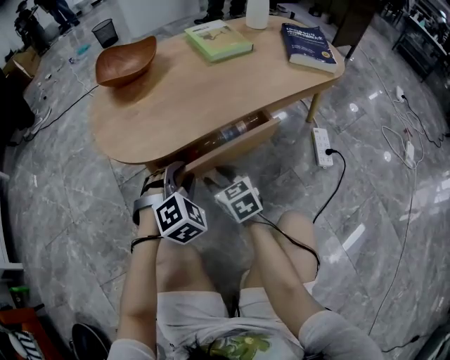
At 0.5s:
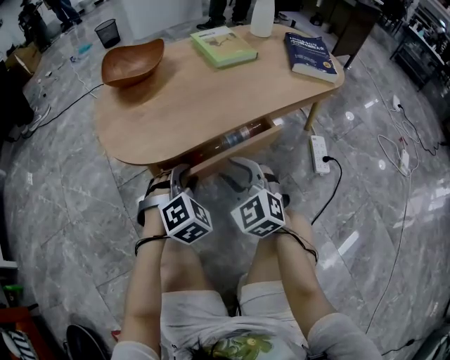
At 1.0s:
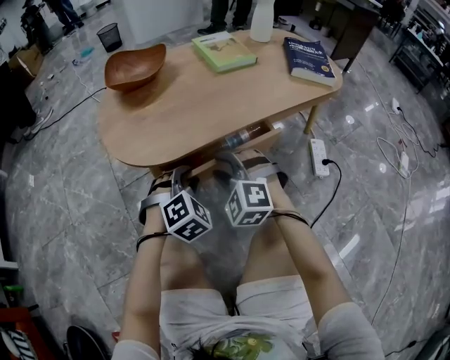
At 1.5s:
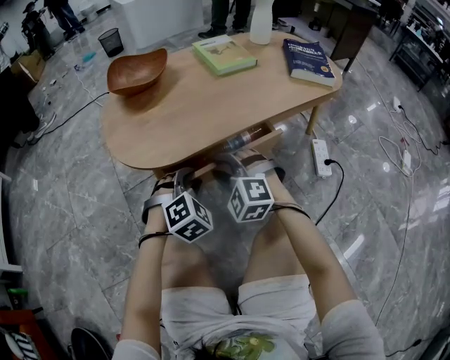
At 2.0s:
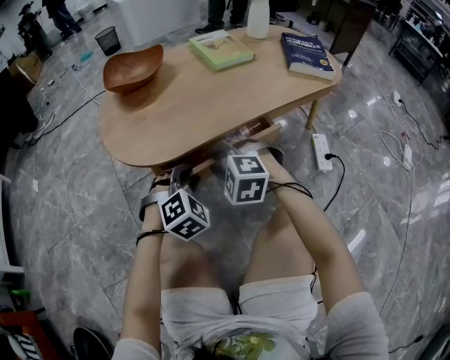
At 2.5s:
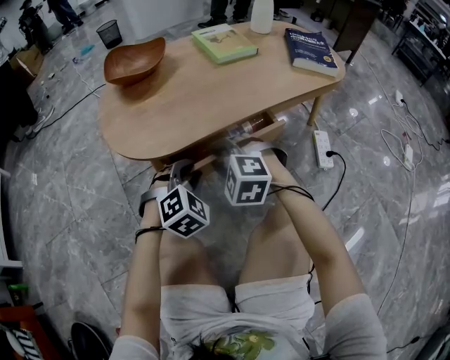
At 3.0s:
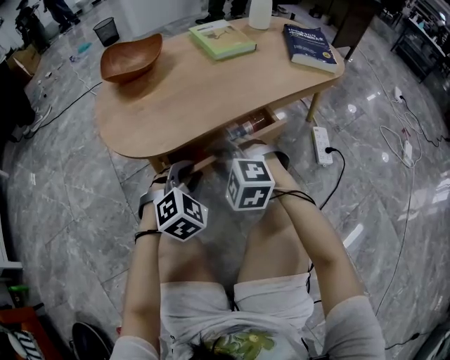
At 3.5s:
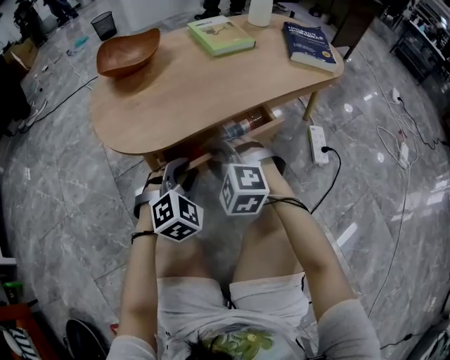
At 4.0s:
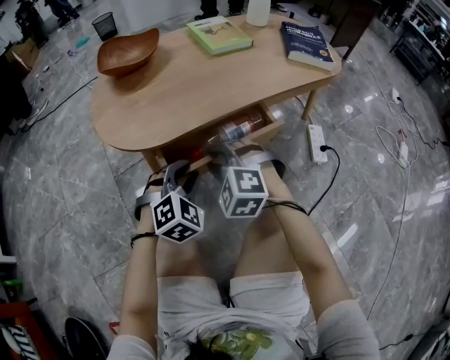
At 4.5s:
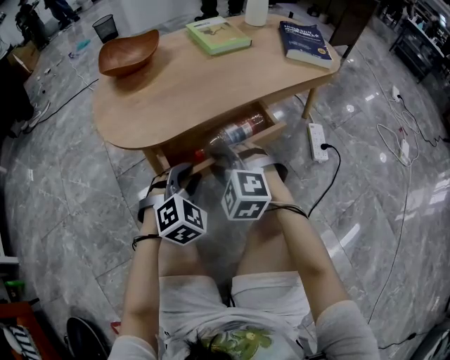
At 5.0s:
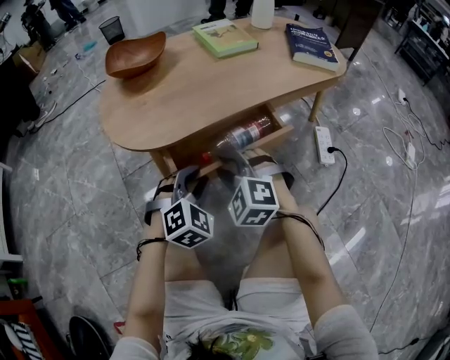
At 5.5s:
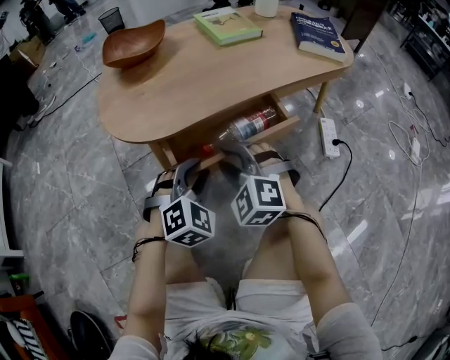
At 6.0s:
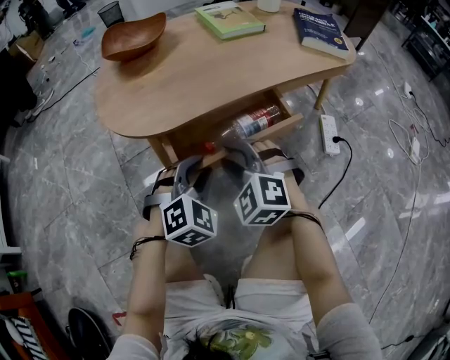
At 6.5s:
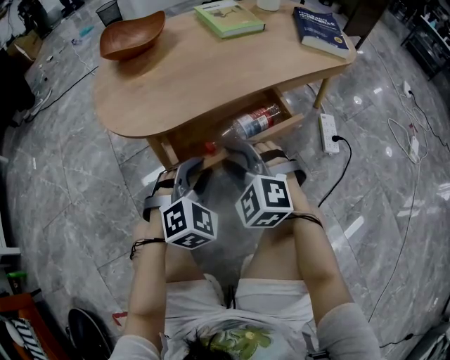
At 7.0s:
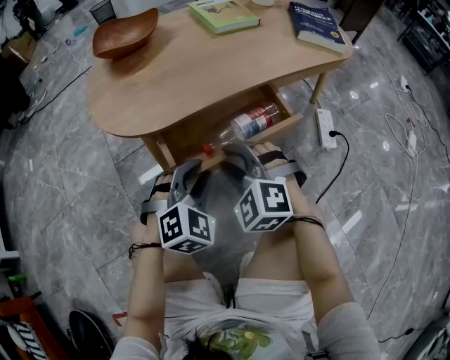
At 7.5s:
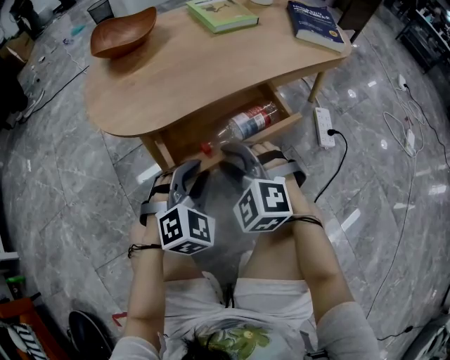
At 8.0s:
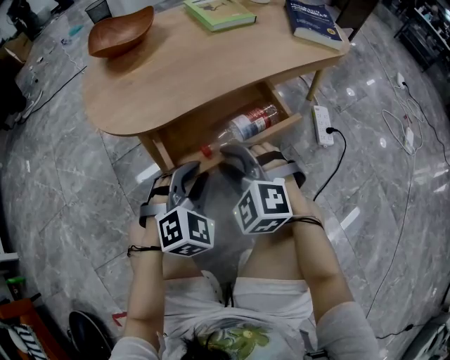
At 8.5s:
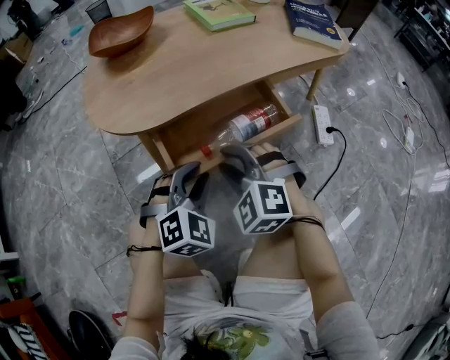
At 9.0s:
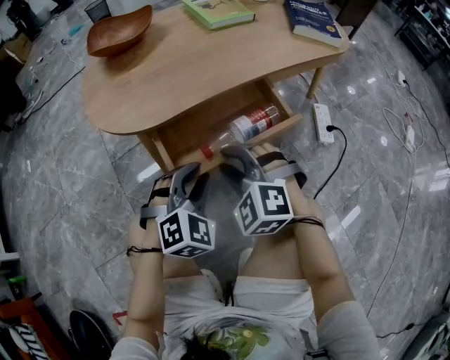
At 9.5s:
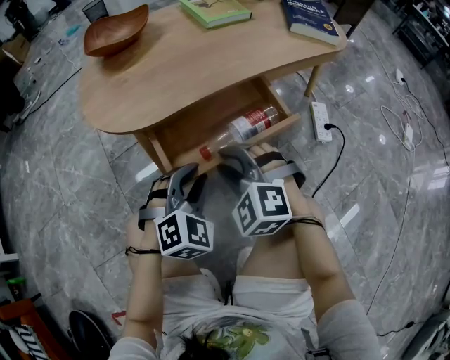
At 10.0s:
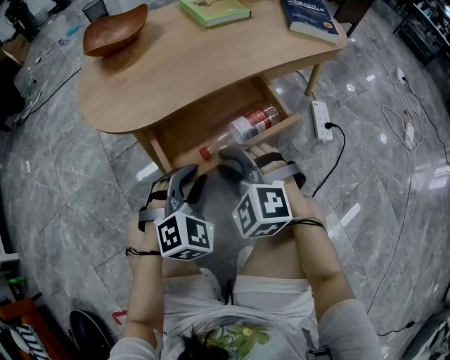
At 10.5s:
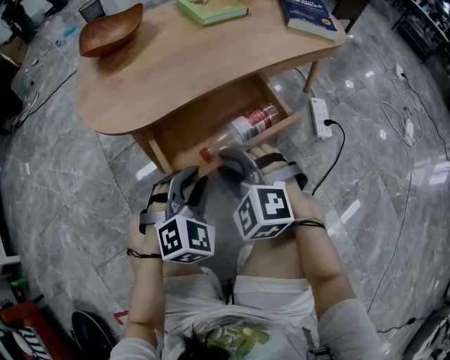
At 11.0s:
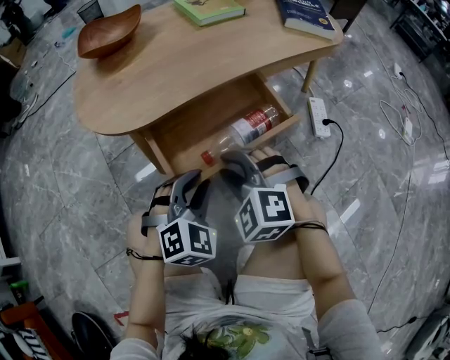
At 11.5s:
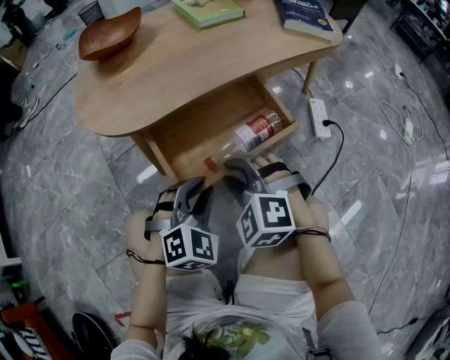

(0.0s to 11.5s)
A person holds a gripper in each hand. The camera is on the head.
0.0s - 2.0s: The right gripper shifts about 10 cm upward, and twists about 60 degrees counterclockwise, seen from behind.
2.0s - 6.0s: There are only small adjustments of the grippers.
6.0s - 7.5s: Both grippers stay put.
7.5s - 11.5s: There are only small adjustments of the grippers.

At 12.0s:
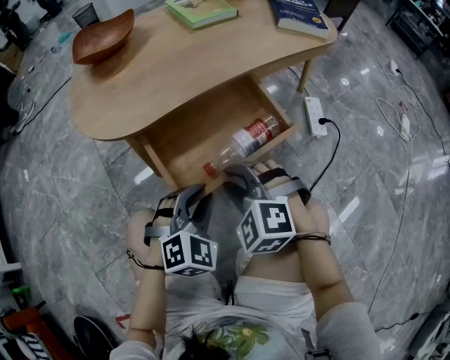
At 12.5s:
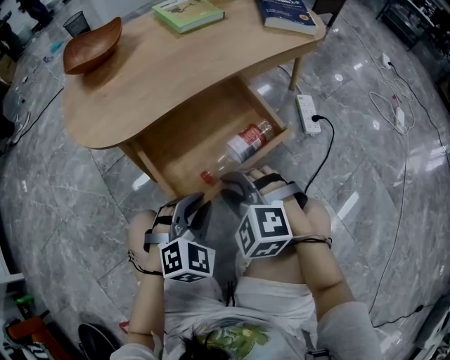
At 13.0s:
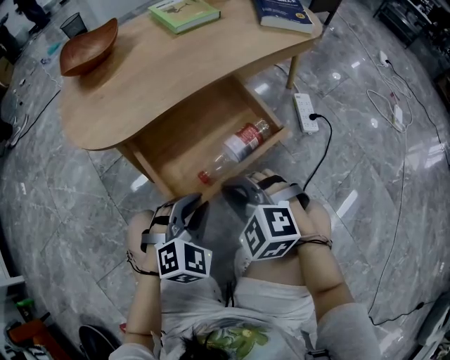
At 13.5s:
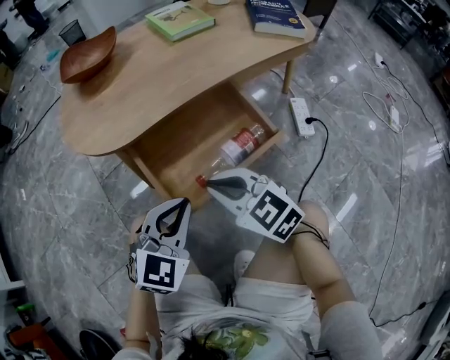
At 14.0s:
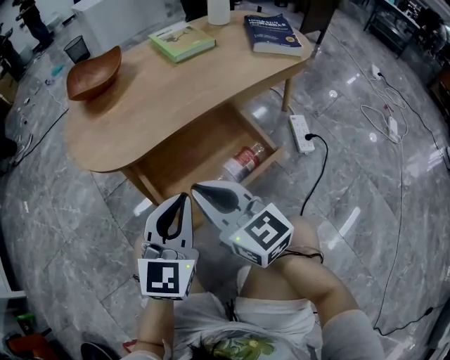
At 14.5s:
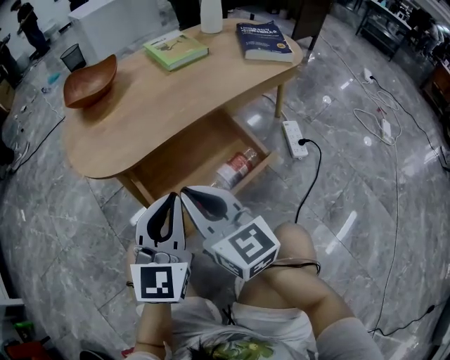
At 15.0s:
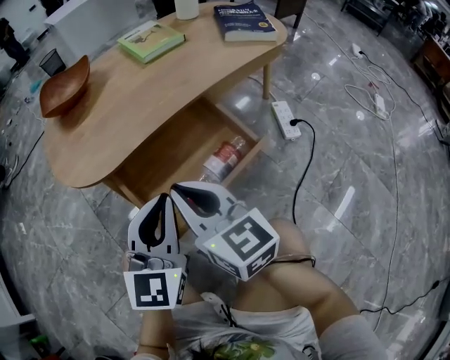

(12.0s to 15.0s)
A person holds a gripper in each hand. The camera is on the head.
12.0s - 13.5s: The left gripper moves upward, about 5 cm, changes its angle by approximately 20 degrees, and closes; the right gripper changes its angle by roughly 40 degrees, and closes.
13.5s - 15.0s: Both grippers move upward, approximately 10 cm. The left gripper rotates roughly 20 degrees. Meanwhile the right gripper swivels roughly 40 degrees.

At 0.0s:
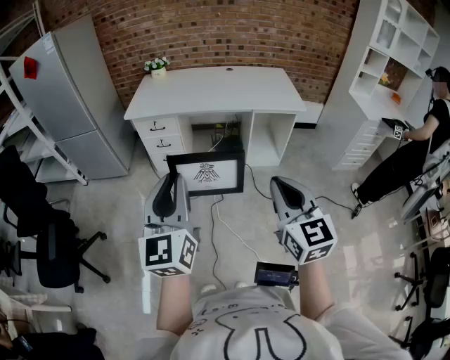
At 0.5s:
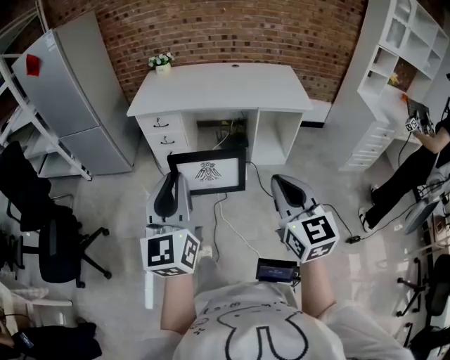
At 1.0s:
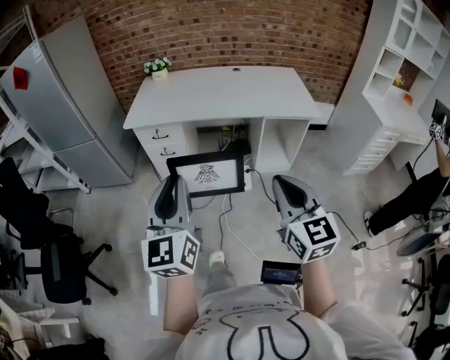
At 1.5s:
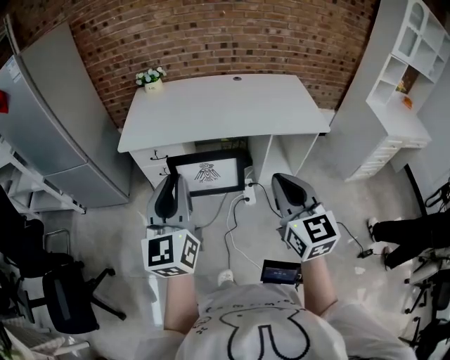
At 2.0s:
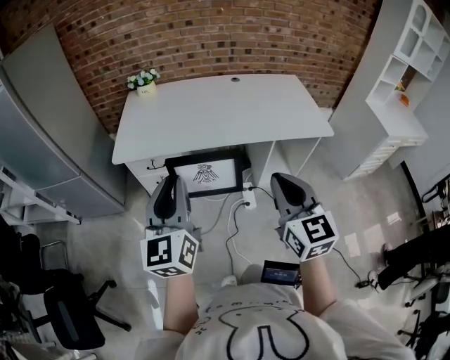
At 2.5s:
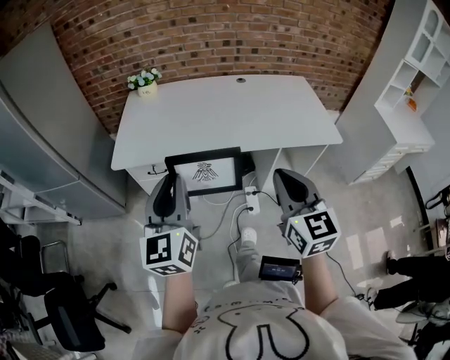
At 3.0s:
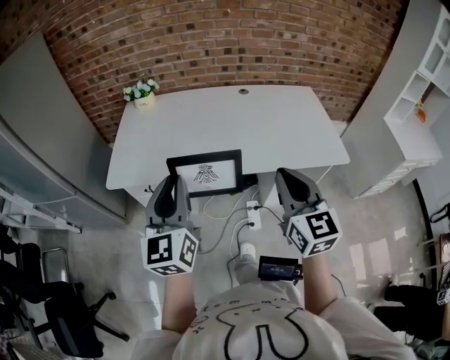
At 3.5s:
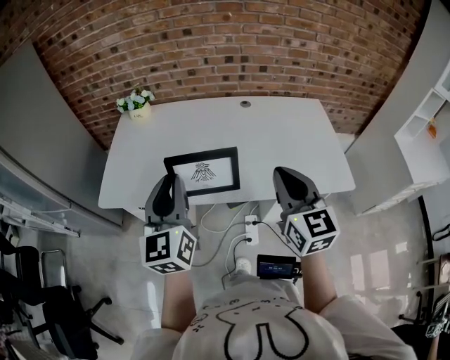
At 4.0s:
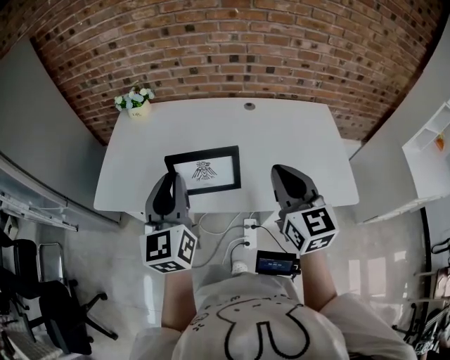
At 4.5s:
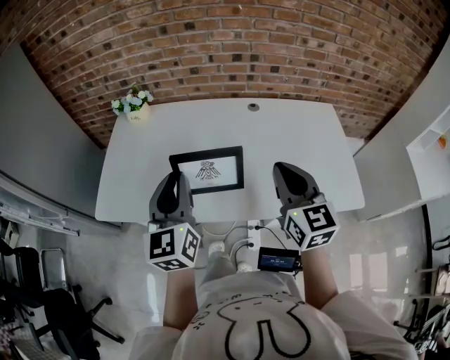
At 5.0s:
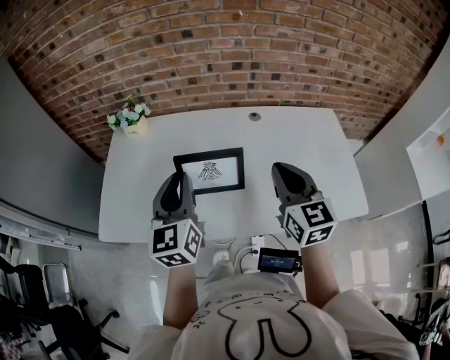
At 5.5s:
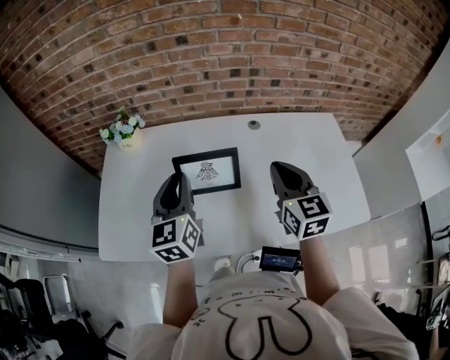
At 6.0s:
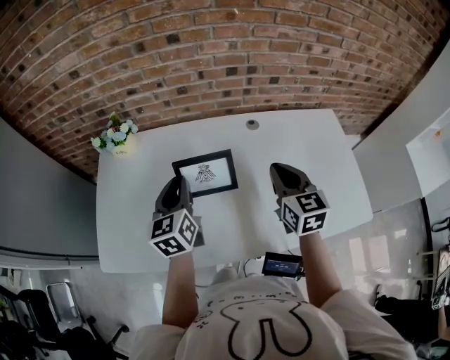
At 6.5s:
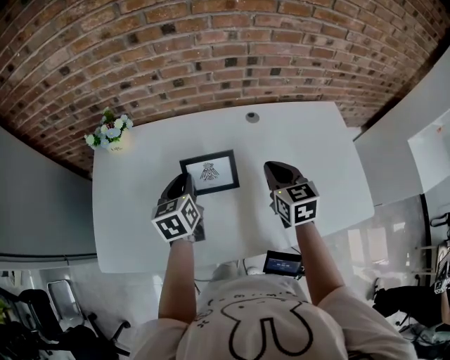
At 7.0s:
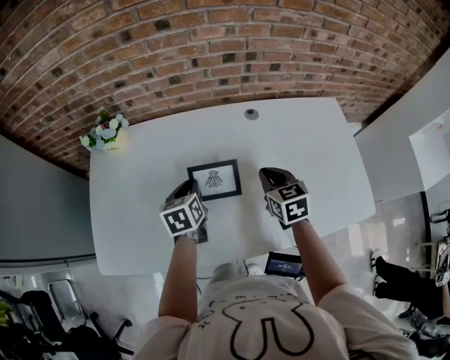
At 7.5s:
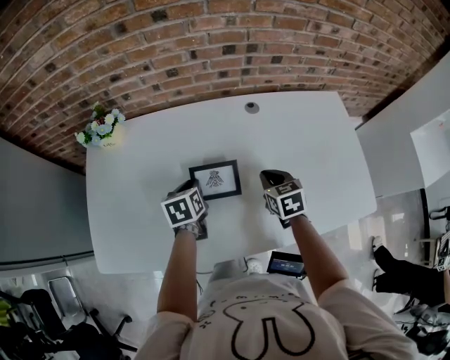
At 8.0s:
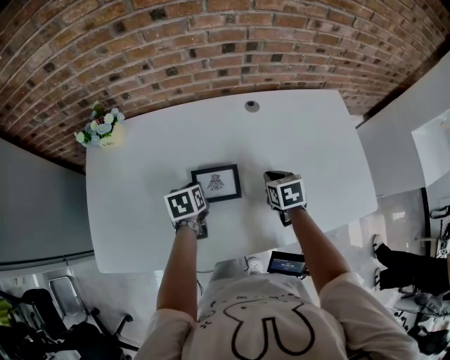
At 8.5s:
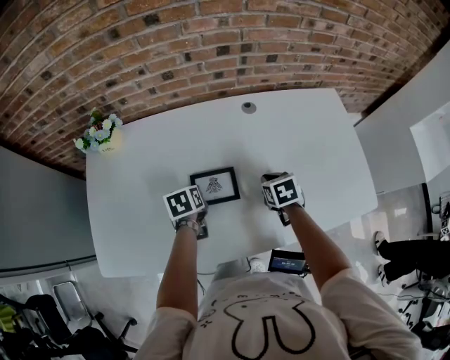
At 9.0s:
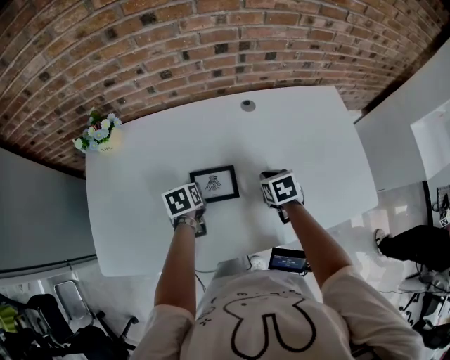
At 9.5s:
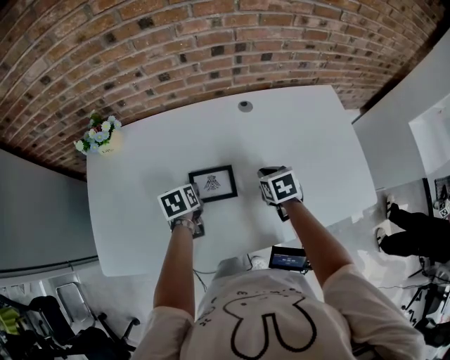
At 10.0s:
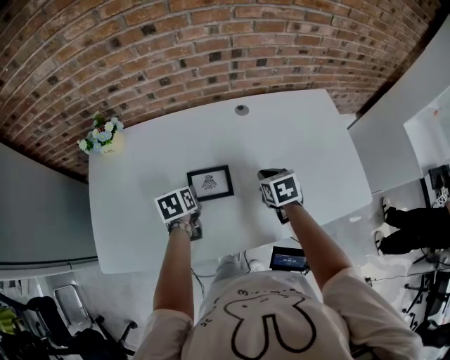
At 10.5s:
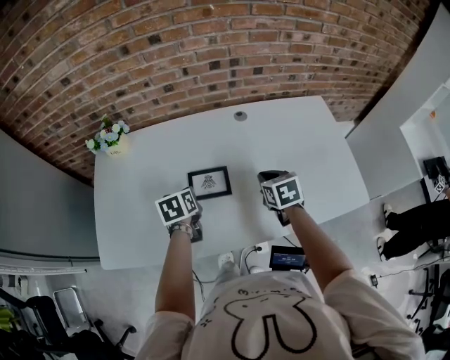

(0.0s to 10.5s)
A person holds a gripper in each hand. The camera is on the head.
0.0s - 2.0s: Both grippers travel together forward, some 40 cm.
2.0s - 4.0s: The two grippers go some 35 cm forward.
4.0s - 6.5s: The grippers both shift forward and downward by roughly 30 cm. The right gripper turns by about 20 degrees. The left gripper swivels roughly 30 degrees.
6.5s - 8.5s: Both grippers move downward, some 15 cm. The left gripper rotates about 30 degrees; the right gripper points its fingers some 30 degrees further downward.
8.5s - 10.5s: Both grippers move upward, about 10 cm.

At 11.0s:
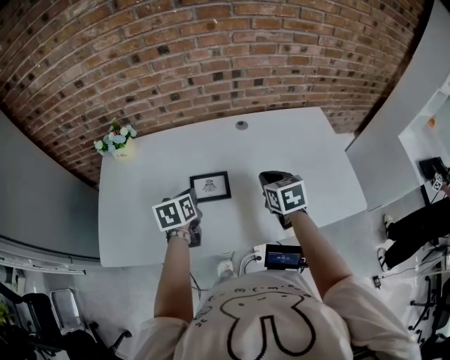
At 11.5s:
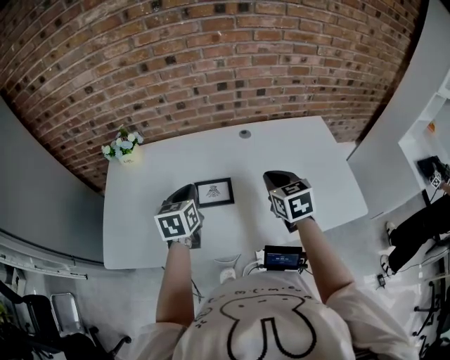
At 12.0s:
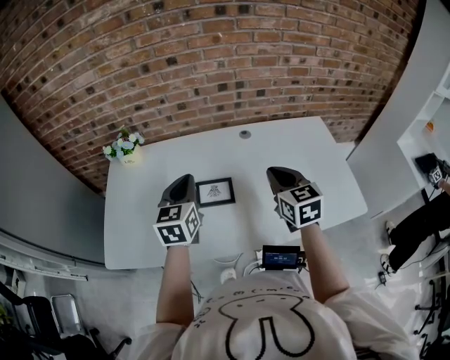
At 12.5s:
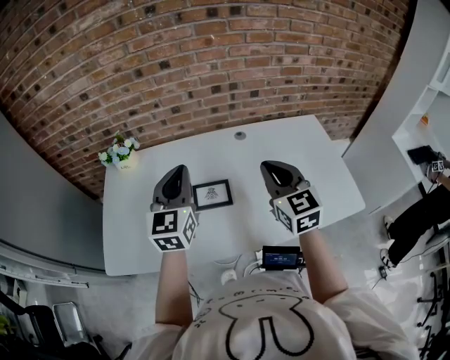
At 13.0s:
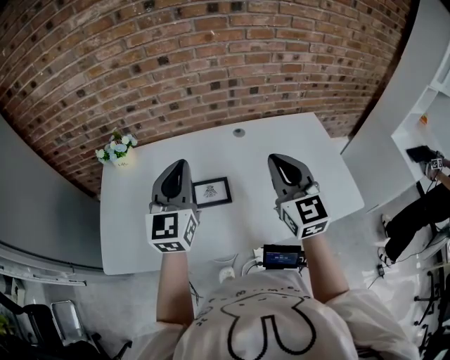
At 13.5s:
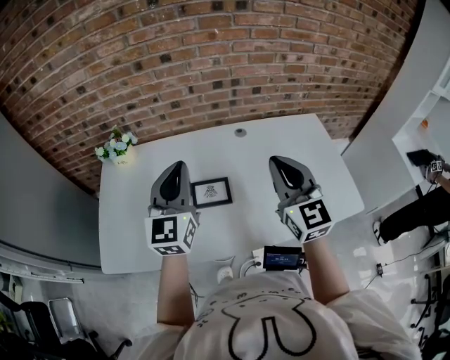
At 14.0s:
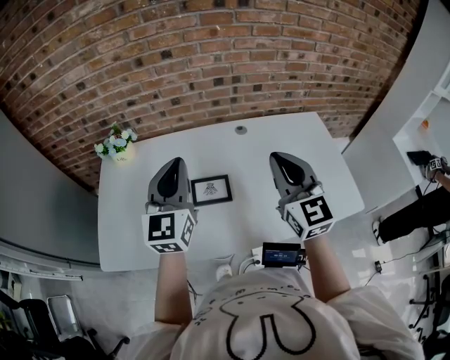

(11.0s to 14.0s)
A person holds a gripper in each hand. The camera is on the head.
11.0s - 12.5s: Both grippers move upward, some 20 cm. The left gripper points its fingers roughly 40 degrees further upward, while the right gripper changes its angle by about 30 degrees.
12.5s - 14.0s: The grippers move only a little.
